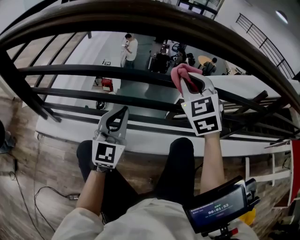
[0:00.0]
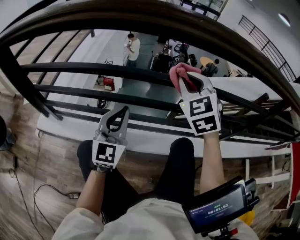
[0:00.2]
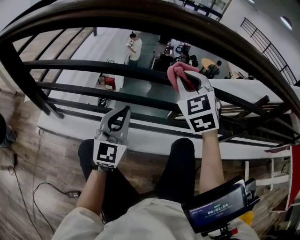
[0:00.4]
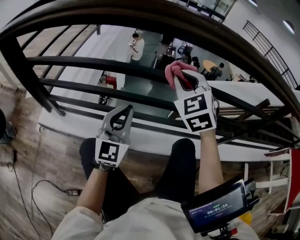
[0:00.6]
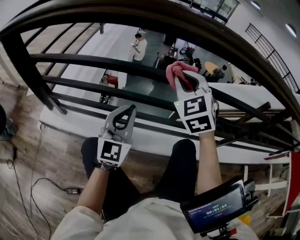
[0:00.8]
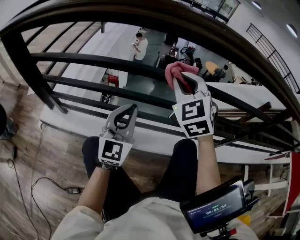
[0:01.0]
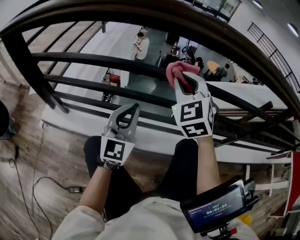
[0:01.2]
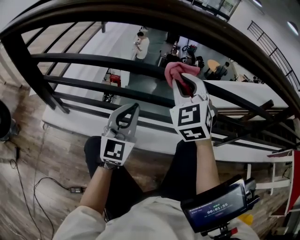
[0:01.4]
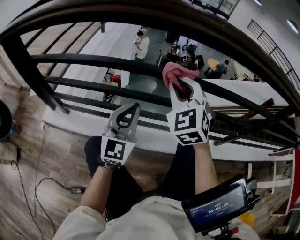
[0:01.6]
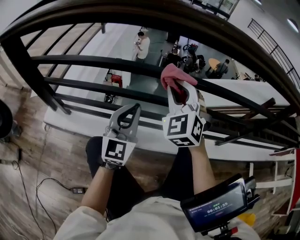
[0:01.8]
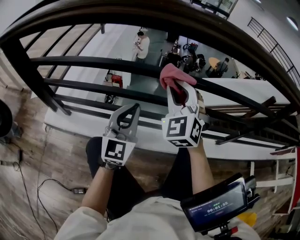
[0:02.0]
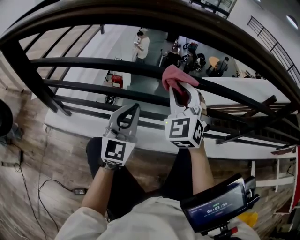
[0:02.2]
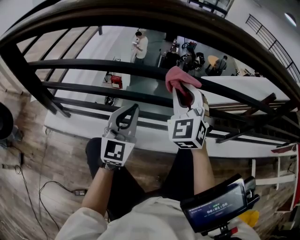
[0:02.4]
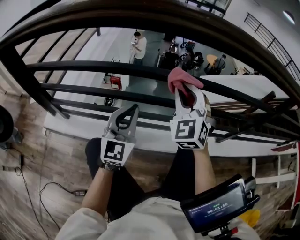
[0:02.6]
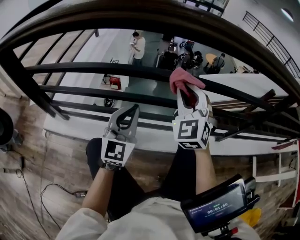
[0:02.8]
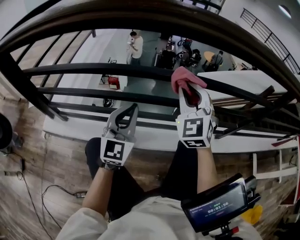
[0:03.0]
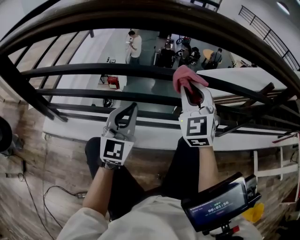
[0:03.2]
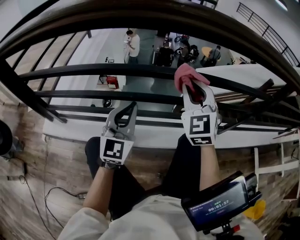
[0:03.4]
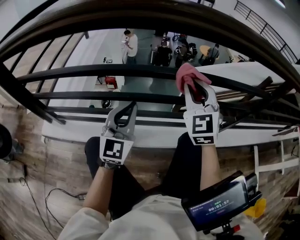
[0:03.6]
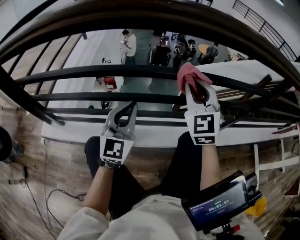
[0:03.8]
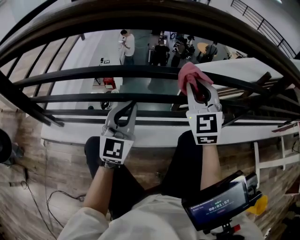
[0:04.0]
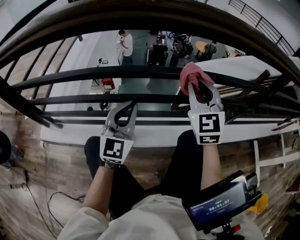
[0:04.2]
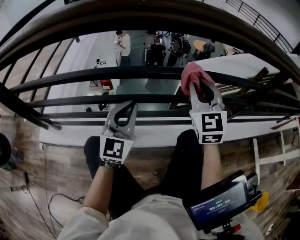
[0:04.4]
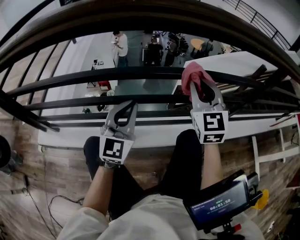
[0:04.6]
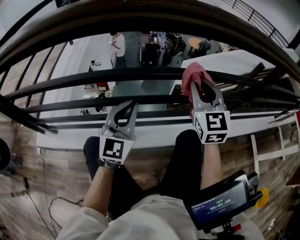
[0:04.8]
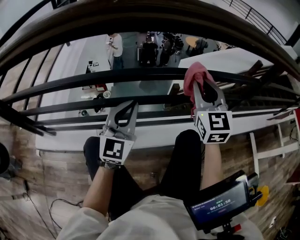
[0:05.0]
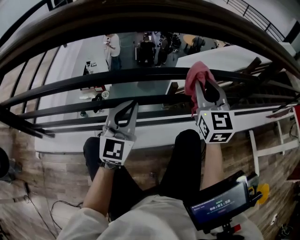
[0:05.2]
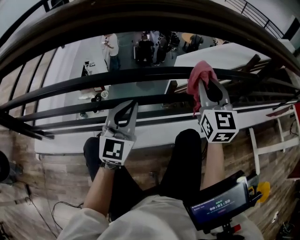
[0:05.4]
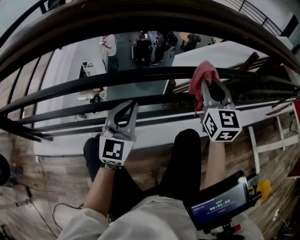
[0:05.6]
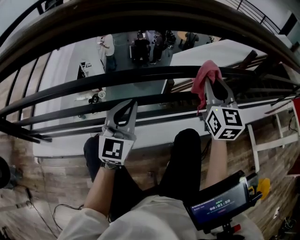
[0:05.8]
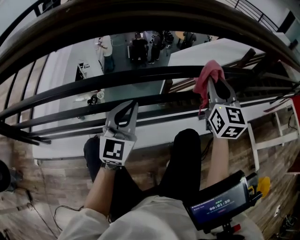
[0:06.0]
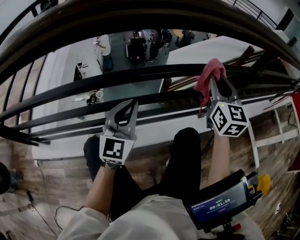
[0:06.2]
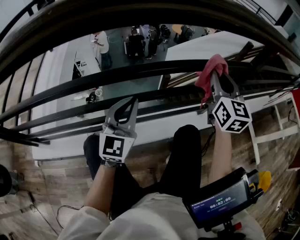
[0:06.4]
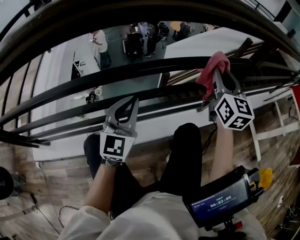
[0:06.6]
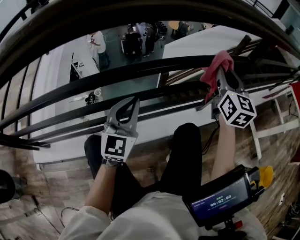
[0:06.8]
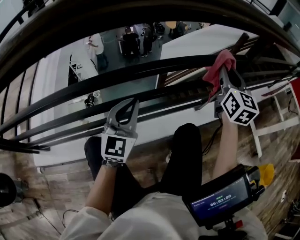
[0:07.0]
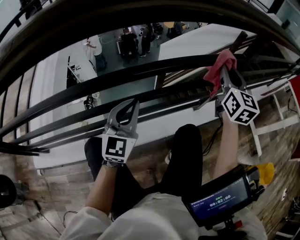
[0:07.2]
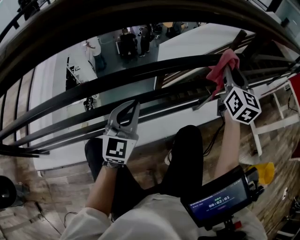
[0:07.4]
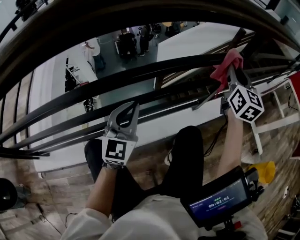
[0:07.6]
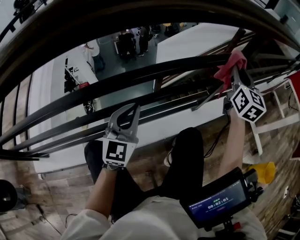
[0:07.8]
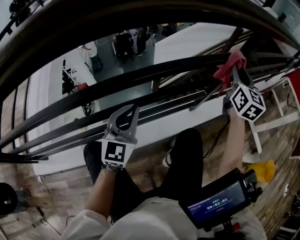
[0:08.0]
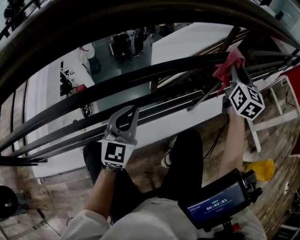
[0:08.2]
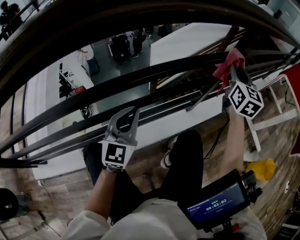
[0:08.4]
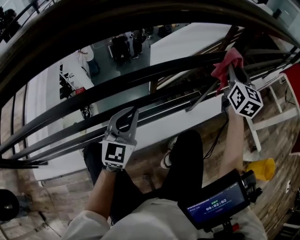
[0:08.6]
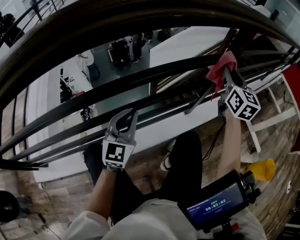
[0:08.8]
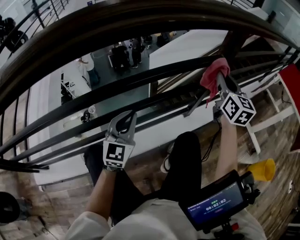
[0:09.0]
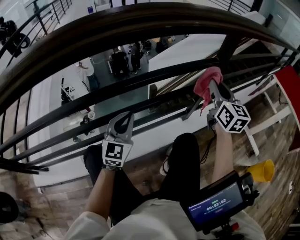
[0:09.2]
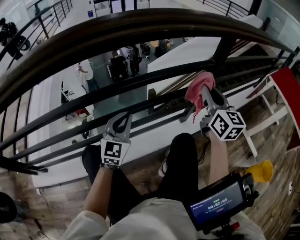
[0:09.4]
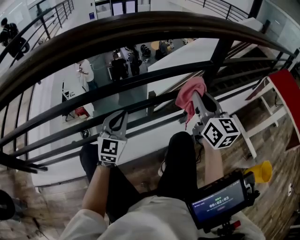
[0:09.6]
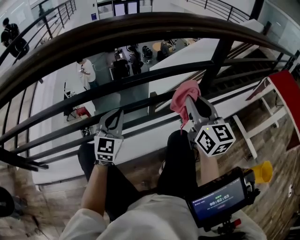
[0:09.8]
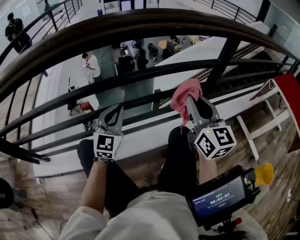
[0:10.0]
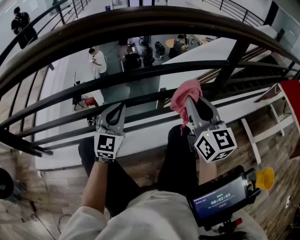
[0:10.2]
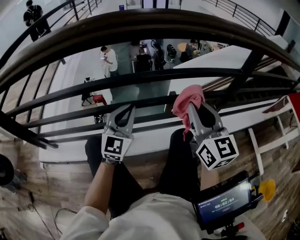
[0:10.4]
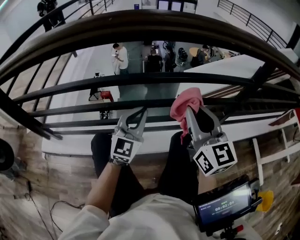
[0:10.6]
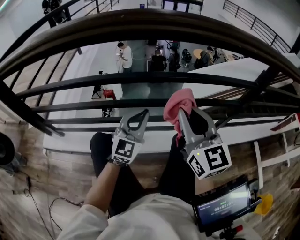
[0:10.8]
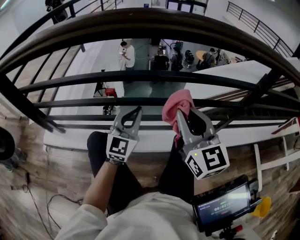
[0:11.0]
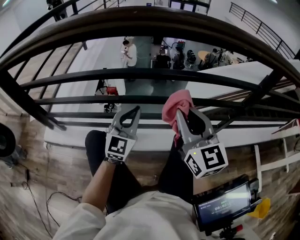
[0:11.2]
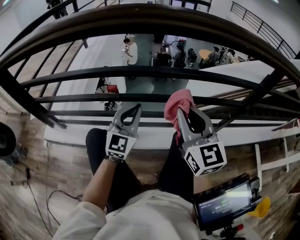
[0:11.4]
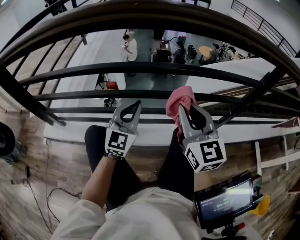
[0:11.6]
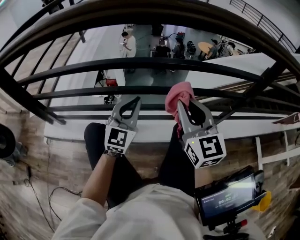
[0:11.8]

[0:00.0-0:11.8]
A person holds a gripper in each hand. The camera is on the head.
0:00.0 to 0:01.4: The right gripper goes about 10 cm to the left.
0:01.4 to 0:03.0: The right gripper goes about 5 cm to the right.
0:03.0 to 0:04.4: The right gripper goes roughly 10 cm to the right. The left gripper moves to the right, roughly 10 cm.
0:04.4 to 0:06.0: The left gripper is displaced to the right by roughly 10 cm; the right gripper is displaced to the right by roughly 15 cm, and rotates approximately 20 degrees.
0:06.0 to 0:07.4: The left gripper moves to the right, some 5 cm, while the right gripper is displaced to the right and forward by about 15 cm.
0:07.4 to 0:08.8: The right gripper moves to the right, approximately 5 cm.
0:08.8 to 0:10.4: The right gripper shifts about 30 cm to the left and backward, and turns by approximately 30 degrees. The left gripper goes approximately 15 cm to the left and backward.
0:10.4 to 0:11.8: The left gripper is displaced to the left by about 10 cm; the right gripper moves to the left, roughly 15 cm.

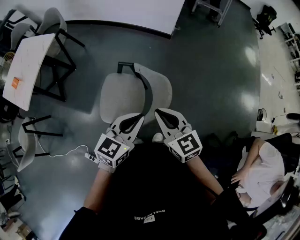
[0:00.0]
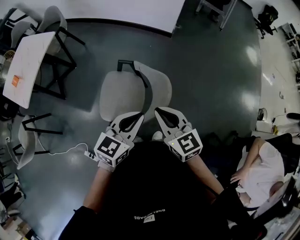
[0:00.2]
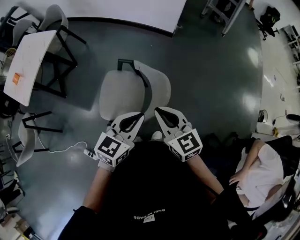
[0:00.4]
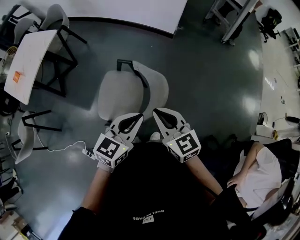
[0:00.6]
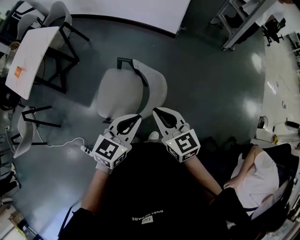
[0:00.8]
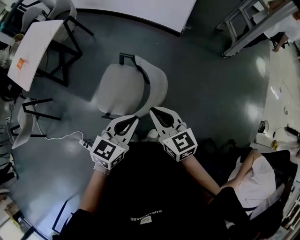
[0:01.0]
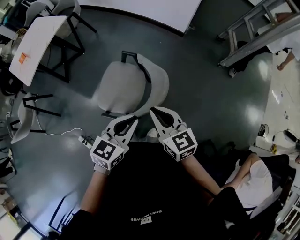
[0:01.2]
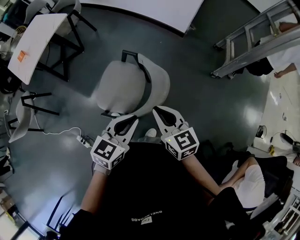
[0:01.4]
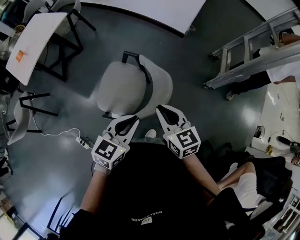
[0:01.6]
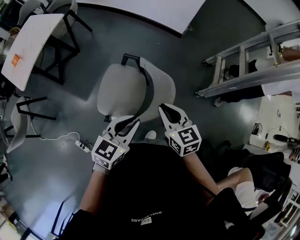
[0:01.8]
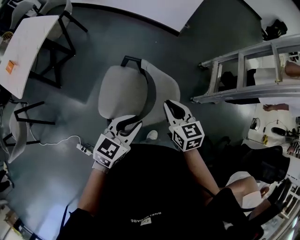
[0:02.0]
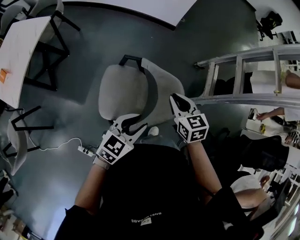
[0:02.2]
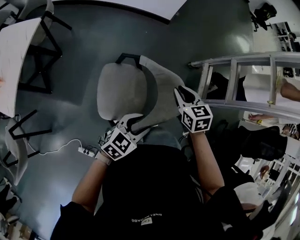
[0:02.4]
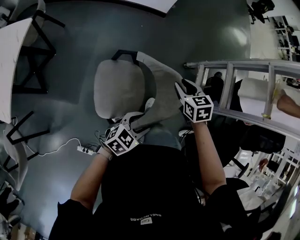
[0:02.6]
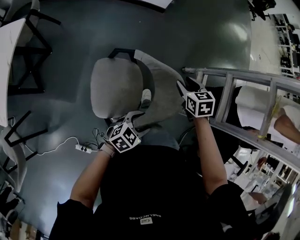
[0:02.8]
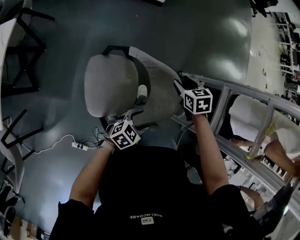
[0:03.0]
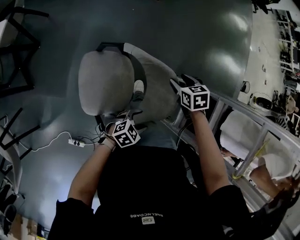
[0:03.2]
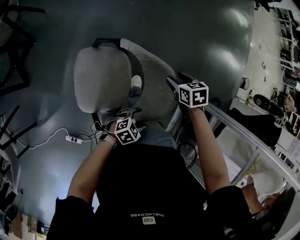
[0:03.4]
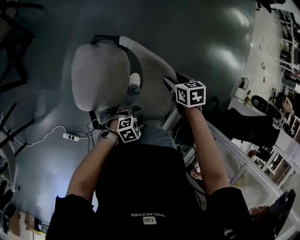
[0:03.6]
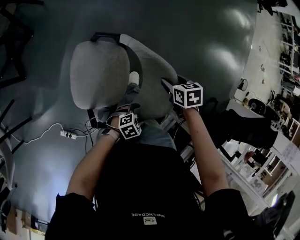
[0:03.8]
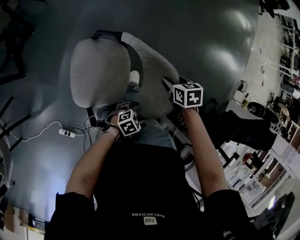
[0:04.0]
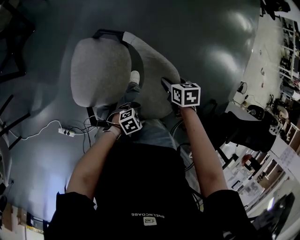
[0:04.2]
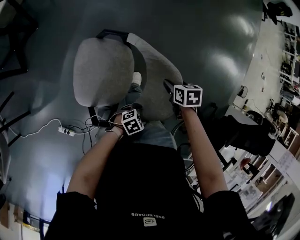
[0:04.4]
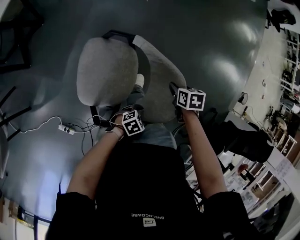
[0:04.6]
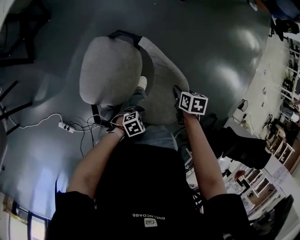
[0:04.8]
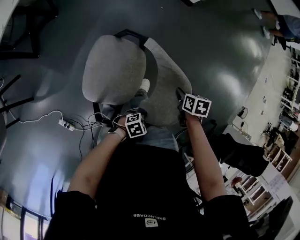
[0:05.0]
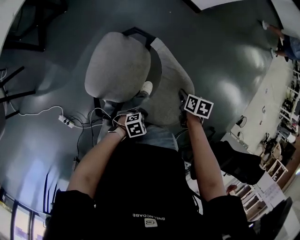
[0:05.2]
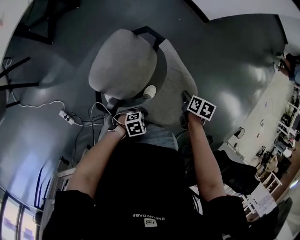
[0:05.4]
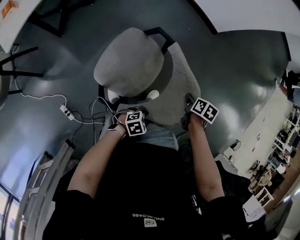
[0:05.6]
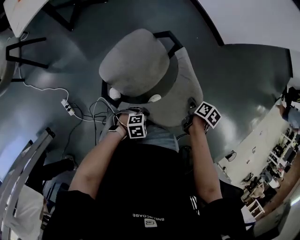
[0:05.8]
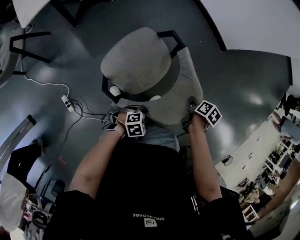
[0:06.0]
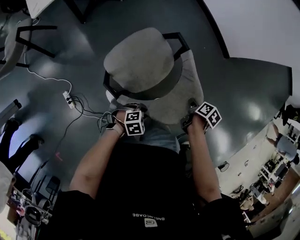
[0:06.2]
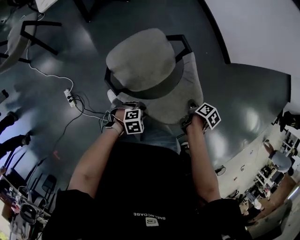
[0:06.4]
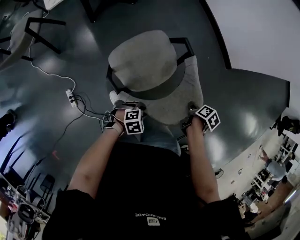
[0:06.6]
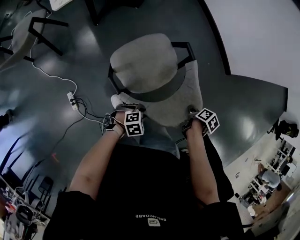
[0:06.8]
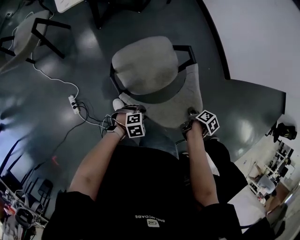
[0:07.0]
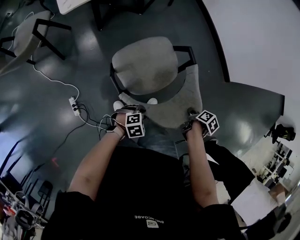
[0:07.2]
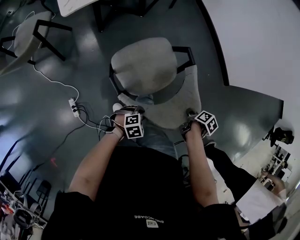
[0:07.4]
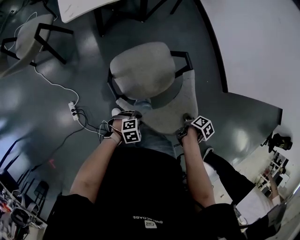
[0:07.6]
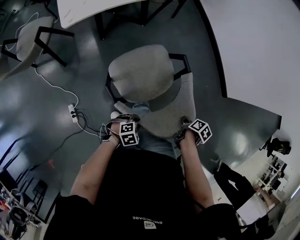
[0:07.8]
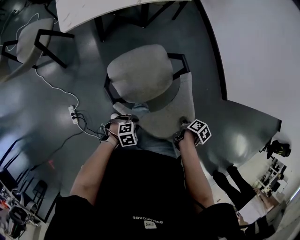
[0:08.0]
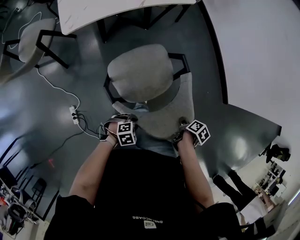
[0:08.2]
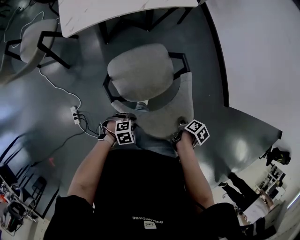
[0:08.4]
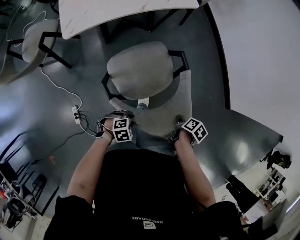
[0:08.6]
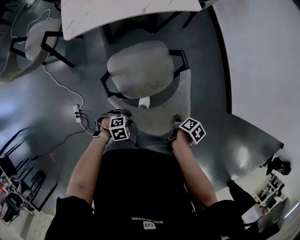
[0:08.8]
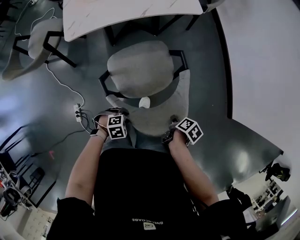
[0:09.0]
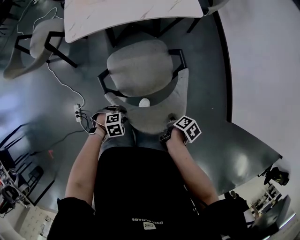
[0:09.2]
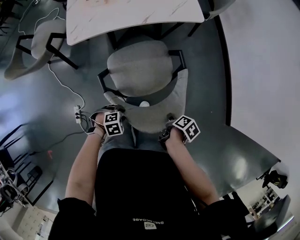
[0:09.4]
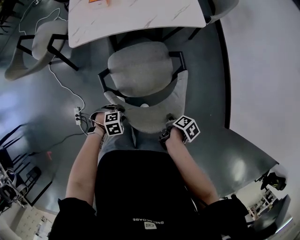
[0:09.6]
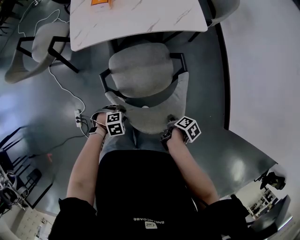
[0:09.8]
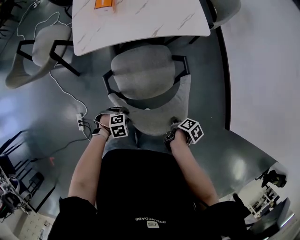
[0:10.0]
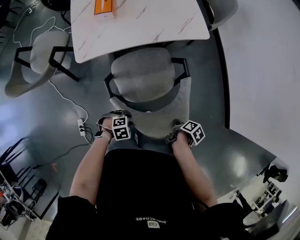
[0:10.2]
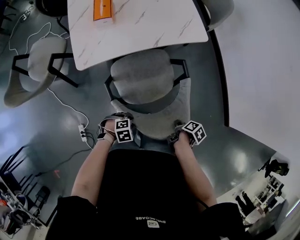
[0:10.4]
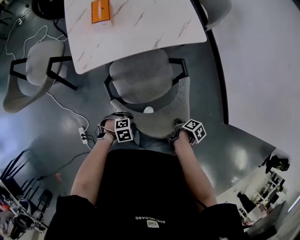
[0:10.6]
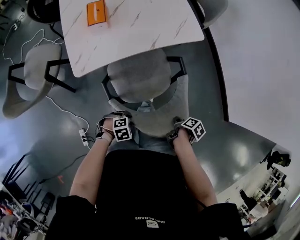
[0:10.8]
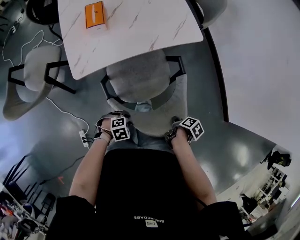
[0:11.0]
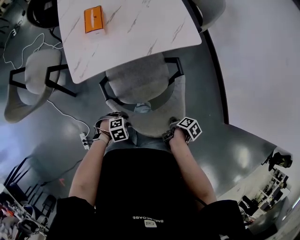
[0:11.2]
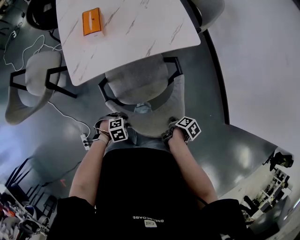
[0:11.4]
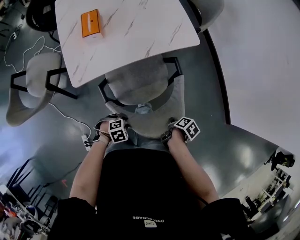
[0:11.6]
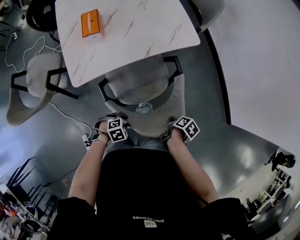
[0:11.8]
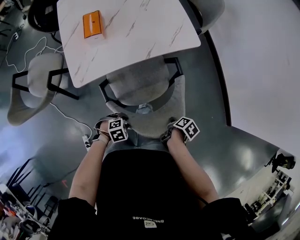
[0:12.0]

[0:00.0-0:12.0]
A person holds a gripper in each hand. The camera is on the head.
0:00.0 to 0:01.6: The right gripper moves roughly 5 cm.
0:01.6 to 0:03.0: Both grippers move downward, approximately 20 cm. The left gripper changes its angle by about 50 degrees, and opens, while the right gripper tilts its fingers some 40 degrees downward, and opens its fingers.
0:03.0 to 0:04.4: Both grippers move downward, about 10 cm.
0:04.4 to 0:06.0: The left gripper moves roughly 15 cm, rotates about 30 degrees, and closes up; the right gripper ends up roughly 10 cm from where it was, and closes up.
0:06.0 to 0:07.6: The two grippers go approximately 20 cm to the left.
0:07.6 to 0:09.0: The left gripper shifts by some 15 cm. The right gripper changes place by about 20 cm.
0:09.0 to 0:10.4: The left gripper shifts by some 15 cm, while the right gripper moves approximately 10 cm.
0:10.4 to 0:12.0: The left gripper changes place by approximately 5 cm. Meanwhile the right gripper changes place by about 5 cm.
